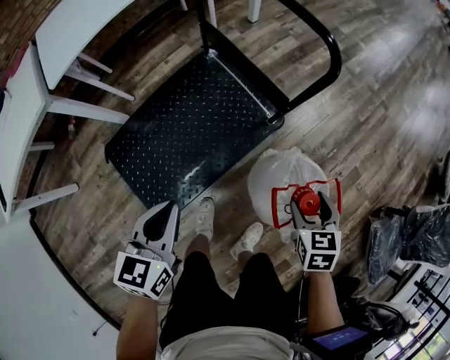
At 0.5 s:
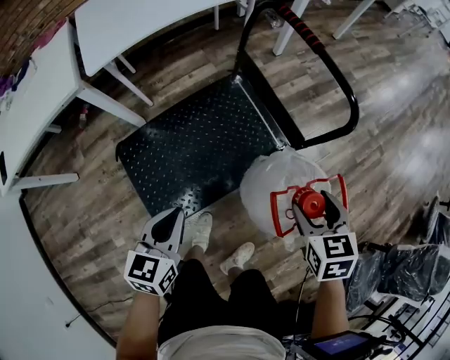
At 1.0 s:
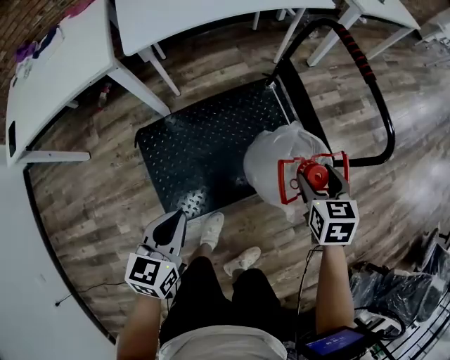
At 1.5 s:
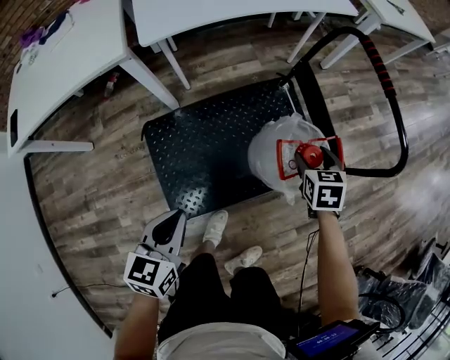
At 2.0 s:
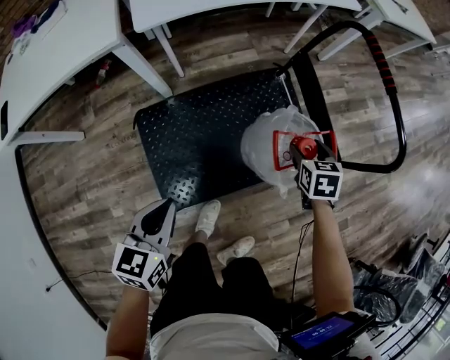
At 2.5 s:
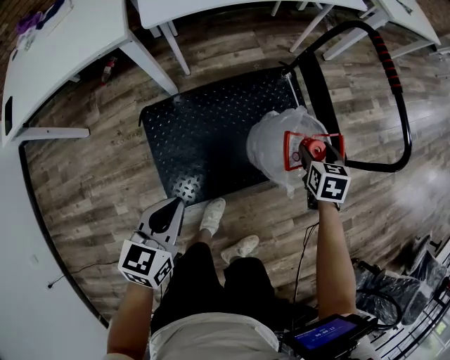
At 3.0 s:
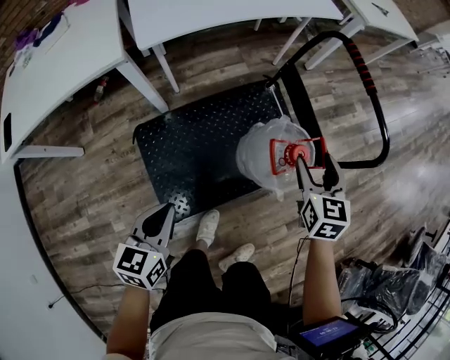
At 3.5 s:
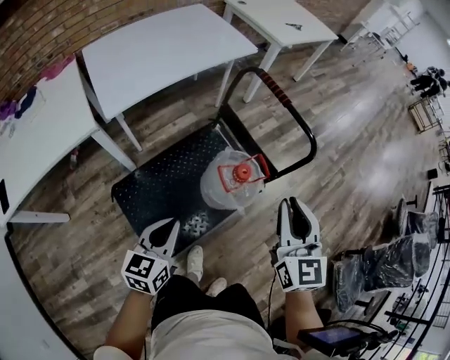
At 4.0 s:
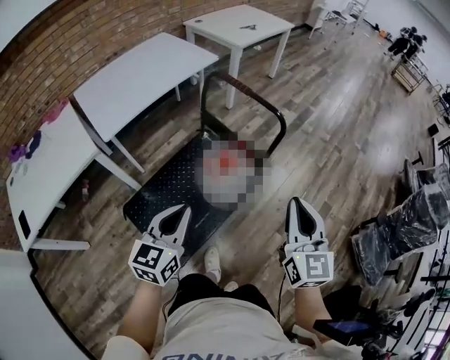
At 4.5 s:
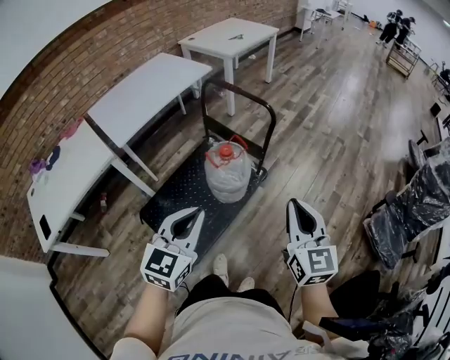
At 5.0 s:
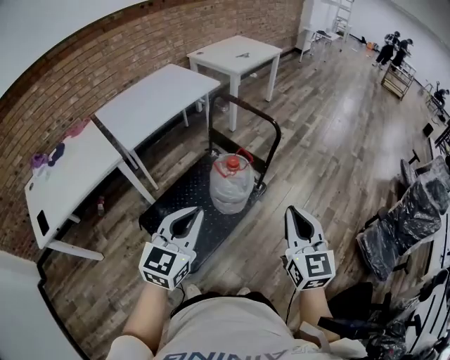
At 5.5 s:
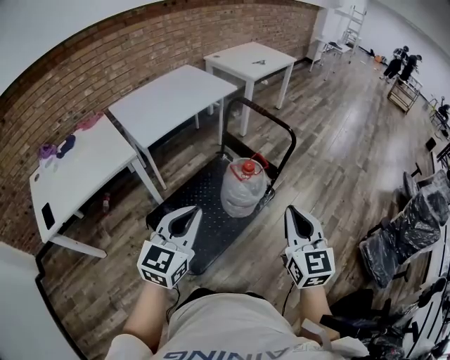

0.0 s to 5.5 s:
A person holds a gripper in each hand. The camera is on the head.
0.0 to 2.0 s: The right gripper heads forward and to the left, covering about 35 cm, while the left gripper heads to the left, covering approximately 20 cm.
2.0 to 3.5 s: The right gripper travels upward and backward by roughly 40 cm, tips its fingers upward by some 50 degrees, and closes up. Meanwhile the left gripper is displaced upward and to the right by roughly 10 cm, and turns by roughly 20 degrees.
3.5 to 5.5 s: The left gripper goes some 25 cm upward and backward, and rotates about 30 degrees. The right gripper goes about 25 cm backward.

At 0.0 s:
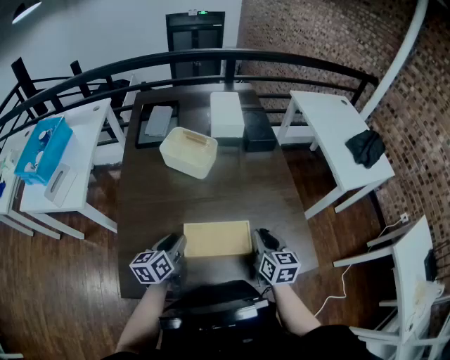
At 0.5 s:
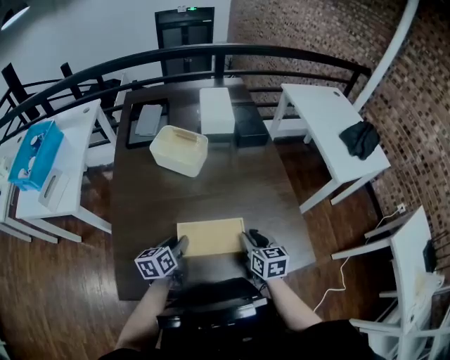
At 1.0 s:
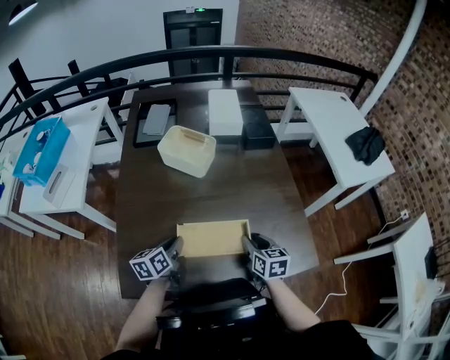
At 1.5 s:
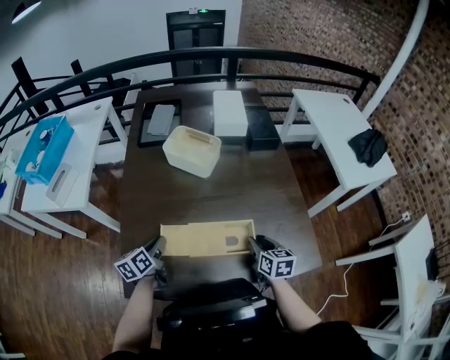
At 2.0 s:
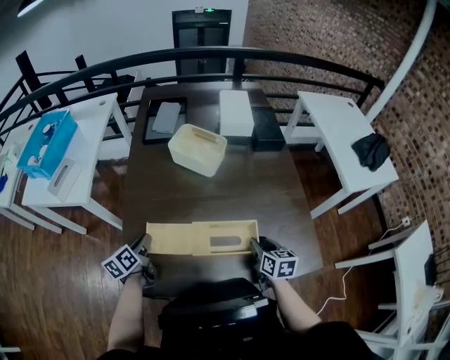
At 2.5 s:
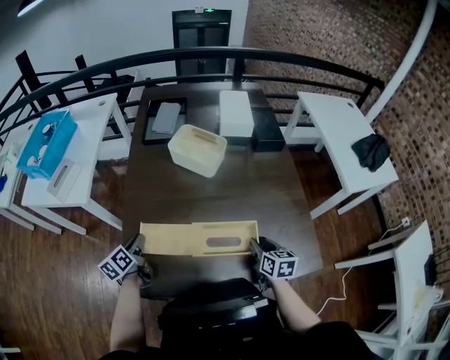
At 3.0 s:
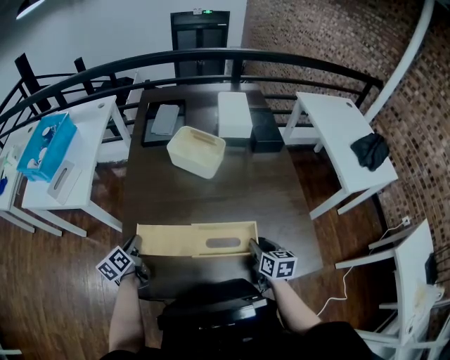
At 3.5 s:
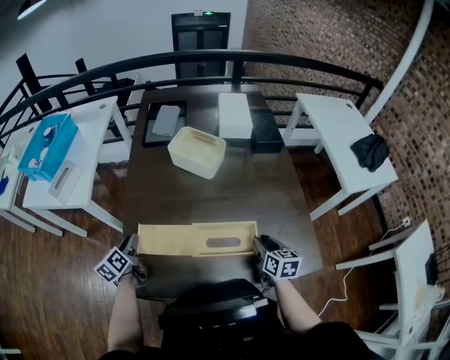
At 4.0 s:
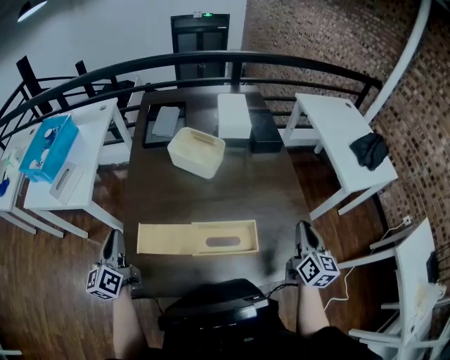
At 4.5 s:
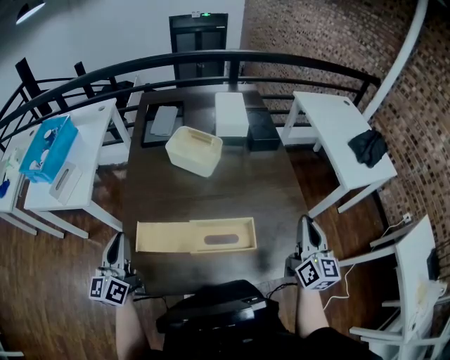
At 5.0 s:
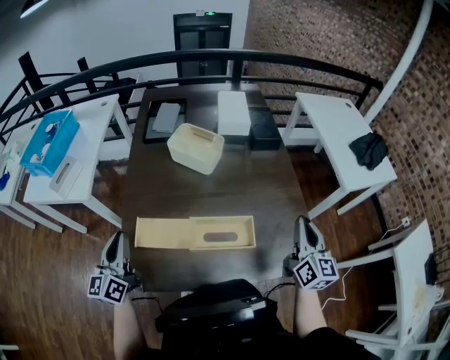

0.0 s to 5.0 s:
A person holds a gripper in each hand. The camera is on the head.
0.0 to 2.5 s: The right gripper heads downward, covering some 5 cm, while the left gripper is displaced to the left by roughly 20 cm, changes its angle by about 20 degrees, and closes up.
2.5 to 5.0 s: The right gripper heads upward and to the right, covering about 25 cm, tilts its fingers some 40 degrees upward, and closes its fingers, while the left gripper is displaced upward and backward by about 20 cm, swivels approximately 40 degrees, and opens and closes again.

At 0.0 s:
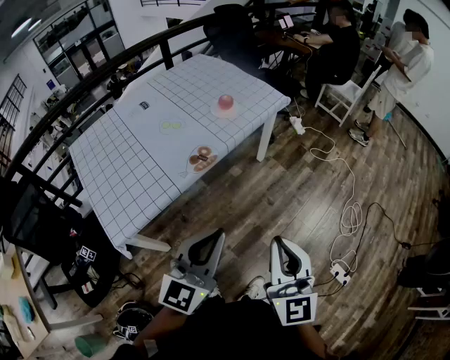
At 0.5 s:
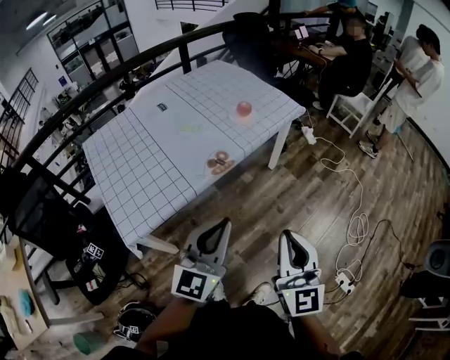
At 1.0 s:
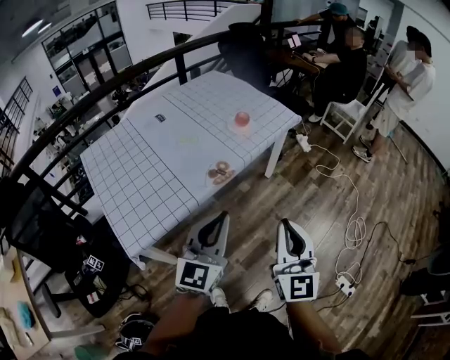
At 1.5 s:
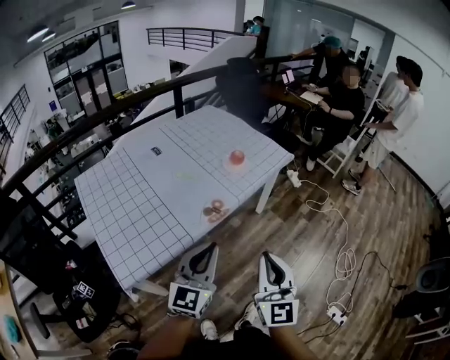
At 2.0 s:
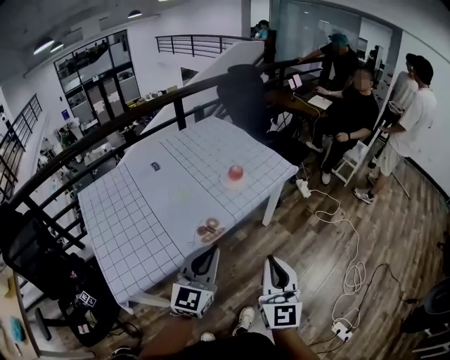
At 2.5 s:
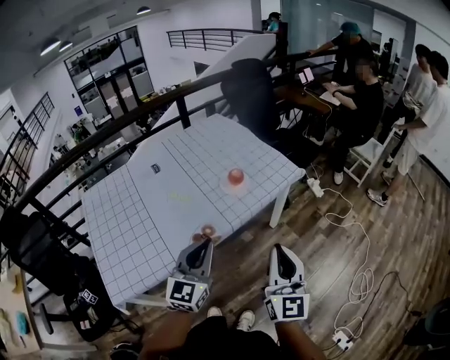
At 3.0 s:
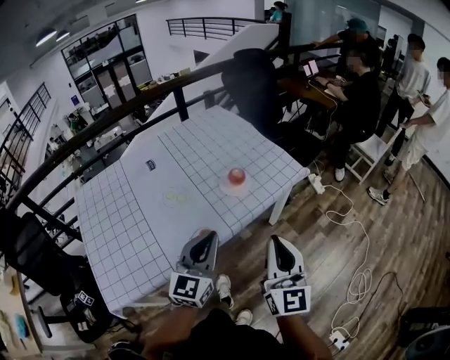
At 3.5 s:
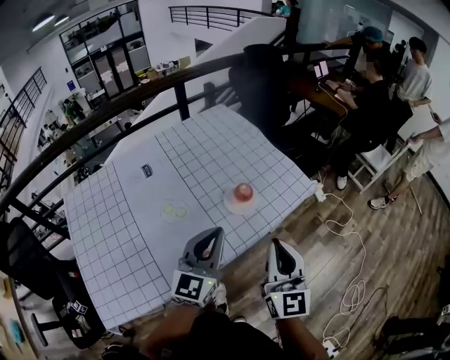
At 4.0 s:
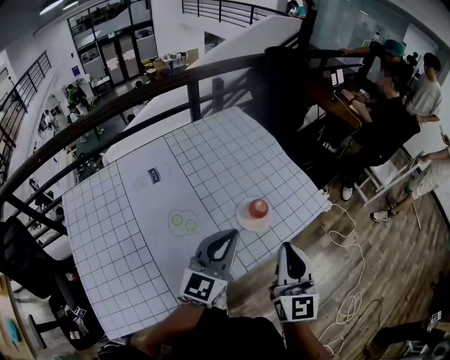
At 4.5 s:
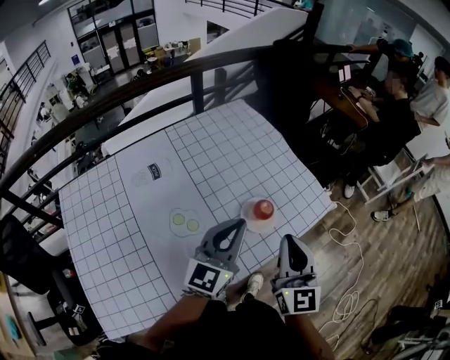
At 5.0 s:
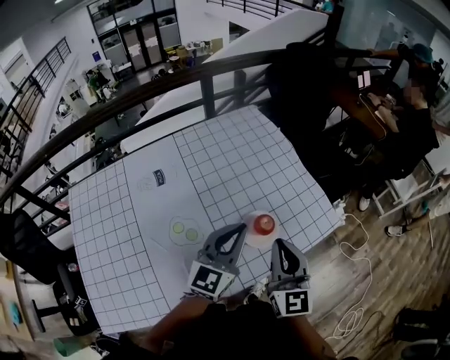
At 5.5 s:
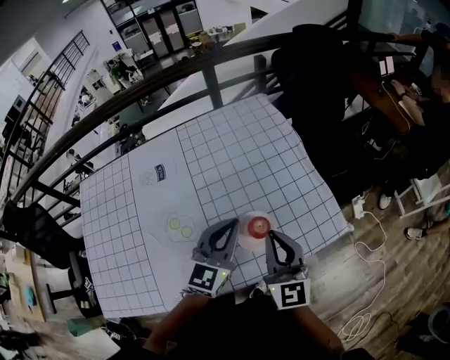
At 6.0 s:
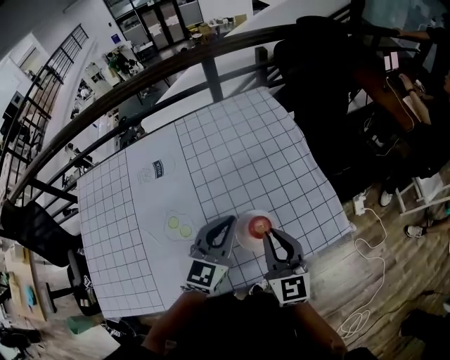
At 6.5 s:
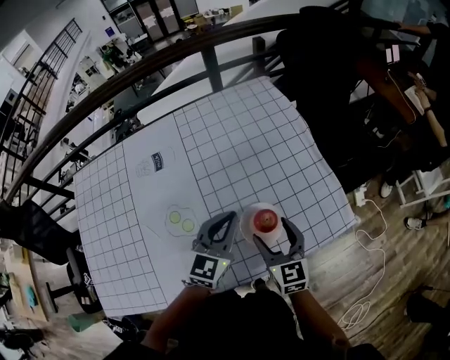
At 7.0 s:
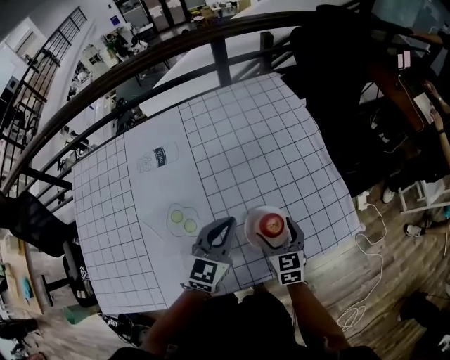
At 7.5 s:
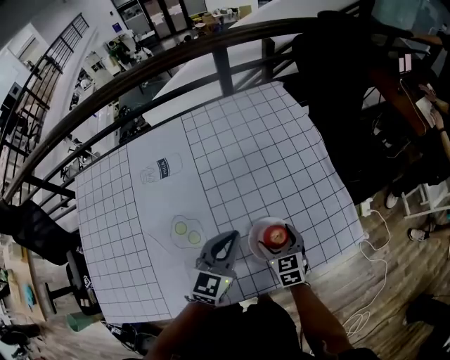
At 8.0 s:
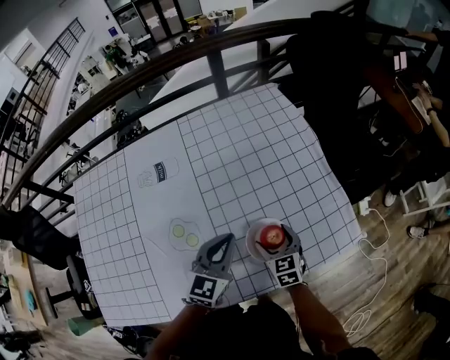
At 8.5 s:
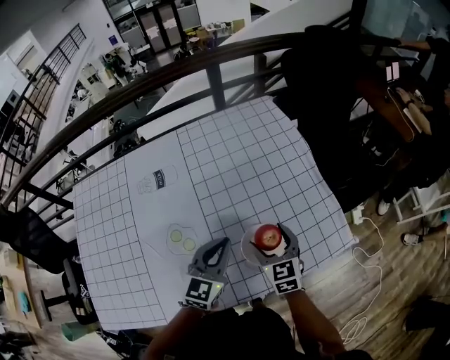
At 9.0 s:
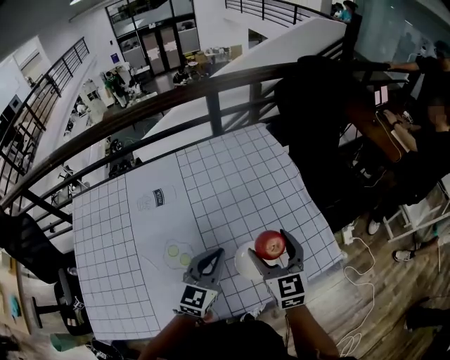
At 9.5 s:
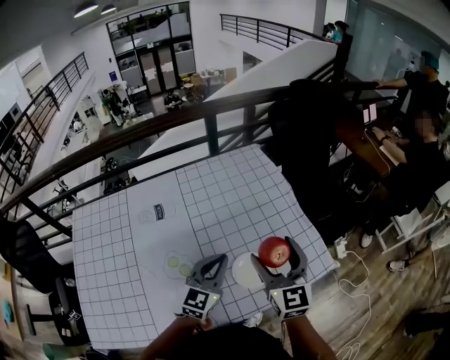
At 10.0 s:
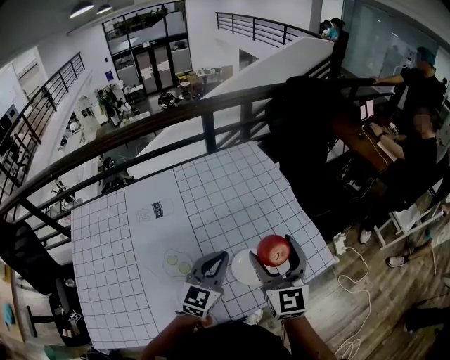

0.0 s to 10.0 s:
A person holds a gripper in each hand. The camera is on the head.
0.0 to 2.0 s: The grippers both shift forward by roughly 15 cm.
2.0 to 4.0 s: Both grippers move forward, approximately 35 cm.
4.0 to 6.0 s: The grippers both shift forward and downward by approximately 20 cm. The left gripper rotates approximately 20 degrees; the right gripper changes its angle by roughly 30 degrees.
6.0 to 8.0 s: The right gripper heads downward, covering roughly 20 cm, tilts its fingers roughly 30 degrees downward, and opens up; the left gripper moves downward, some 5 cm.
8.0 to 10.0 s: The left gripper heads upward, covering some 10 cm. The right gripper shifts some 30 cm upward, and angles its fingers upward, by roughly 30 degrees.

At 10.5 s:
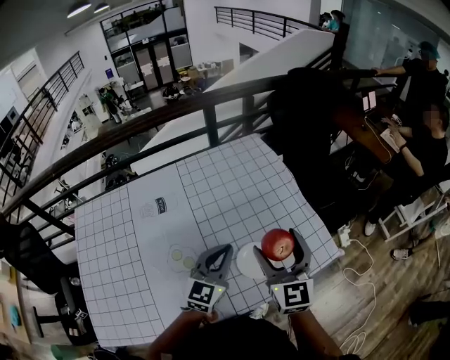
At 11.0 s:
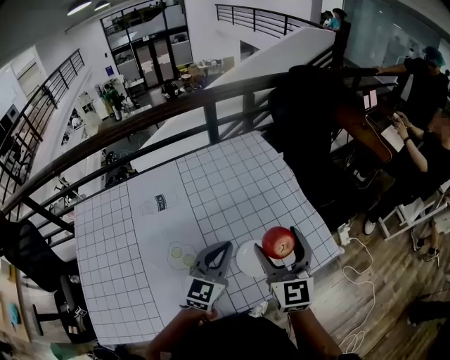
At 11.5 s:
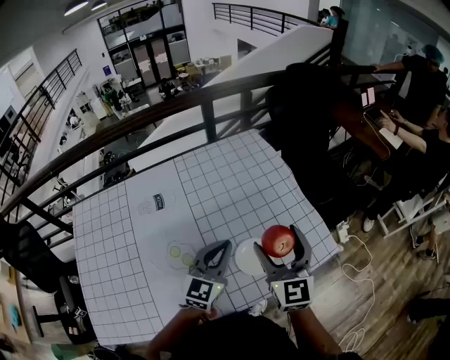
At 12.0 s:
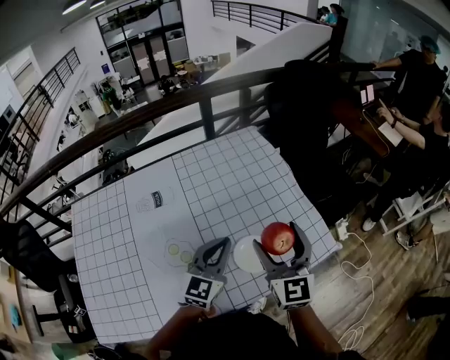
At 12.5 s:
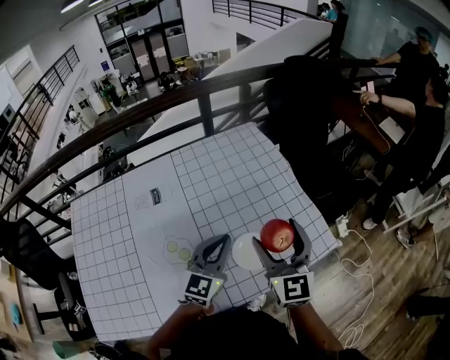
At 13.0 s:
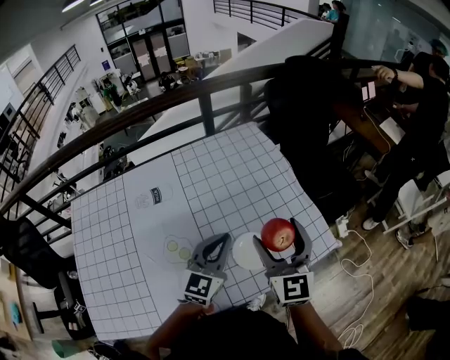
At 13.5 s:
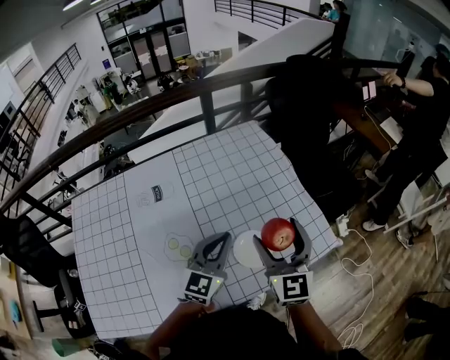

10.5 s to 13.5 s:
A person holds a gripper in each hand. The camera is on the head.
10.5 to 12.0 s: Both grippers stay about where they are.
12.0 to 13.5 s: Neither gripper changes place.

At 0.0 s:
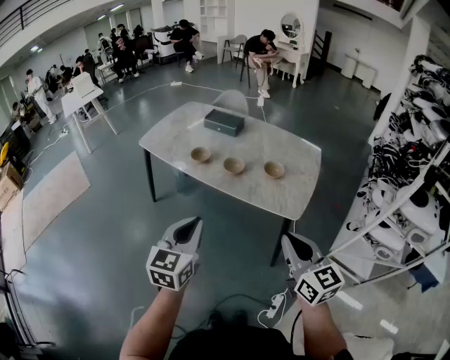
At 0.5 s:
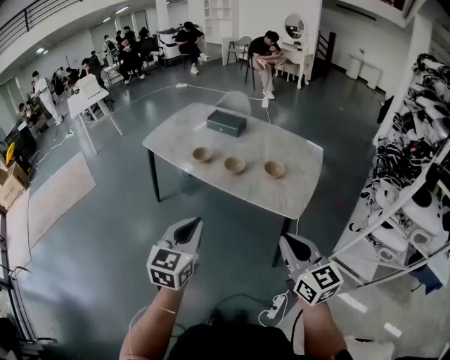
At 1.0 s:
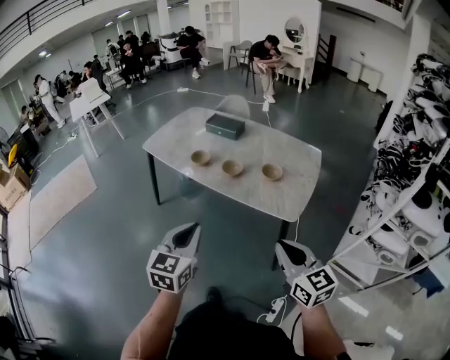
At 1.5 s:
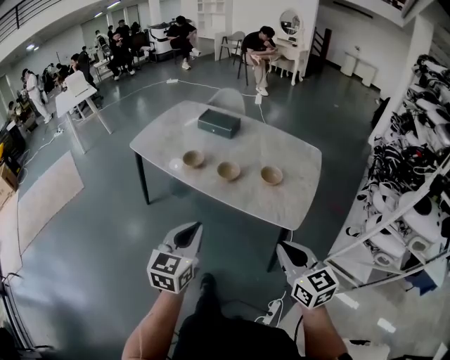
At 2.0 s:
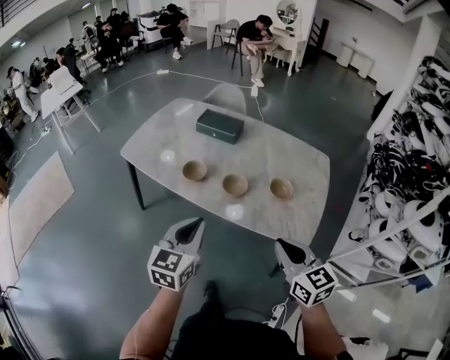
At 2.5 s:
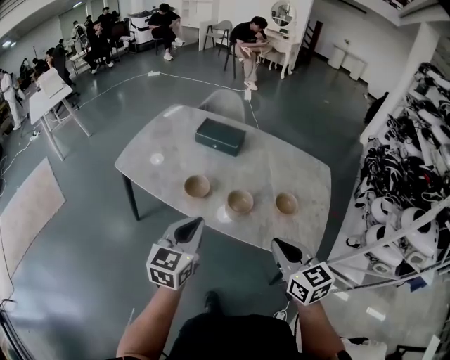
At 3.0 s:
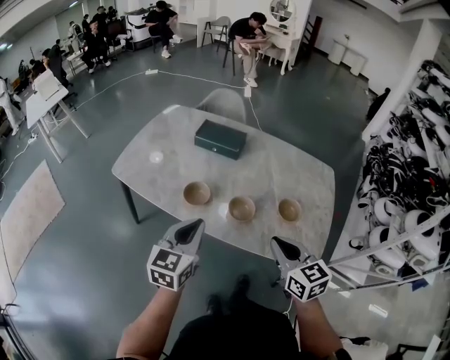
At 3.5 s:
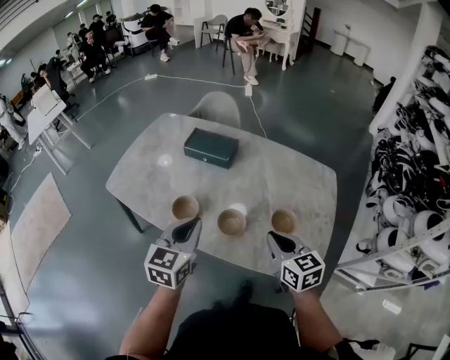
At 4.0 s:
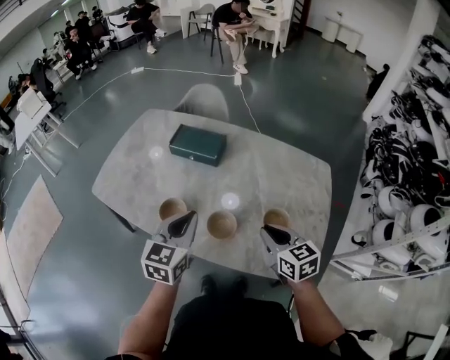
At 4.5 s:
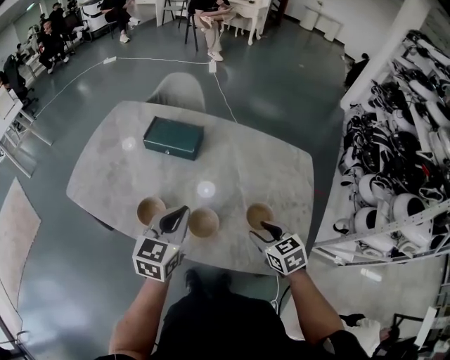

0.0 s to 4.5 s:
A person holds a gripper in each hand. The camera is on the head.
0.0 to 2.0 s: Both grippers move forward, approximately 20 cm.
2.0 to 4.5 s: The right gripper shifts some 35 cm forward and downward, rotates about 30 degrees, and opens its fingers; the left gripper shifts roughly 30 cm forward.
